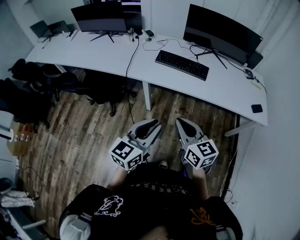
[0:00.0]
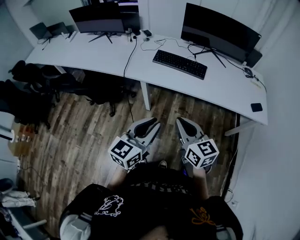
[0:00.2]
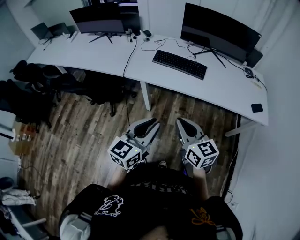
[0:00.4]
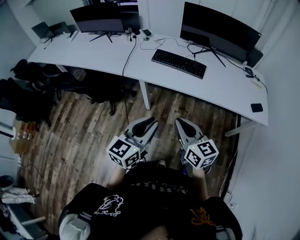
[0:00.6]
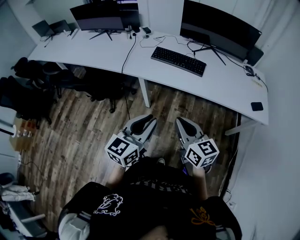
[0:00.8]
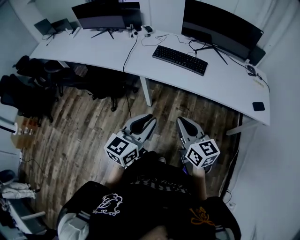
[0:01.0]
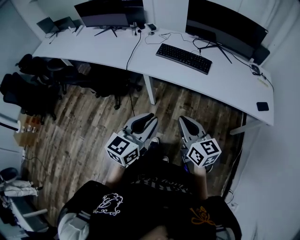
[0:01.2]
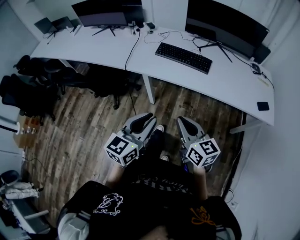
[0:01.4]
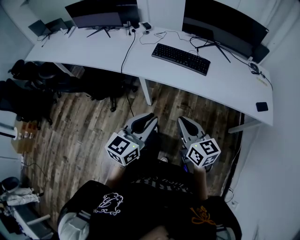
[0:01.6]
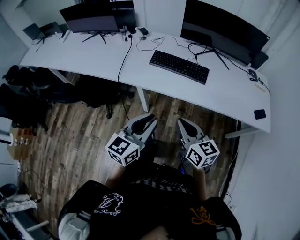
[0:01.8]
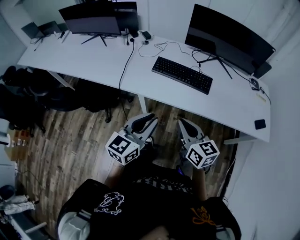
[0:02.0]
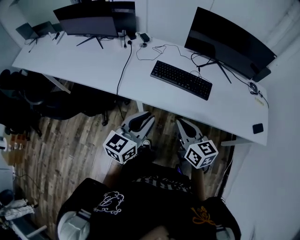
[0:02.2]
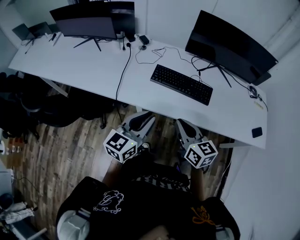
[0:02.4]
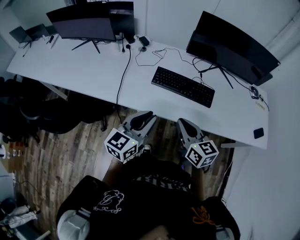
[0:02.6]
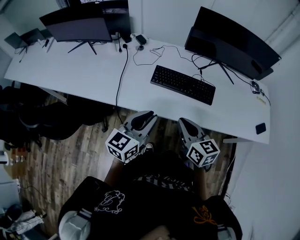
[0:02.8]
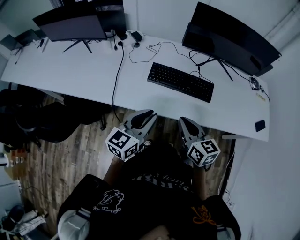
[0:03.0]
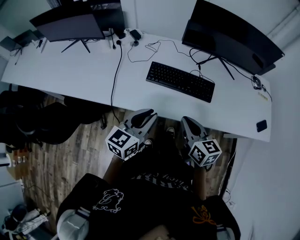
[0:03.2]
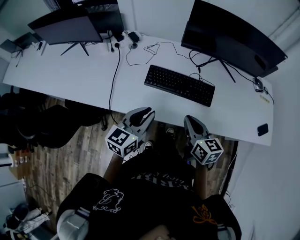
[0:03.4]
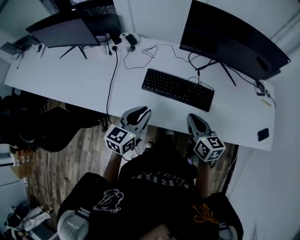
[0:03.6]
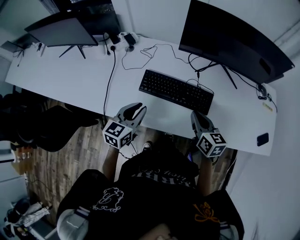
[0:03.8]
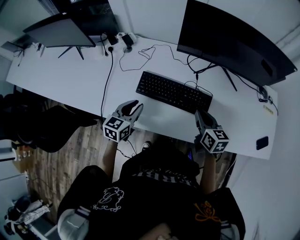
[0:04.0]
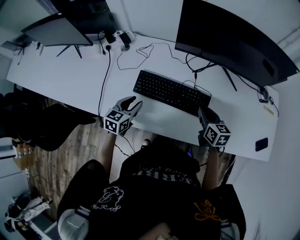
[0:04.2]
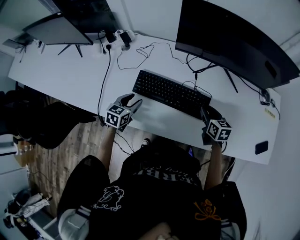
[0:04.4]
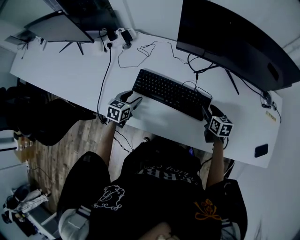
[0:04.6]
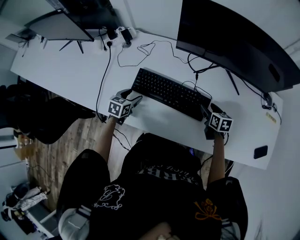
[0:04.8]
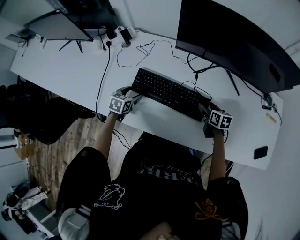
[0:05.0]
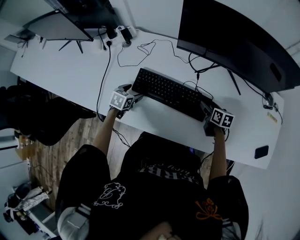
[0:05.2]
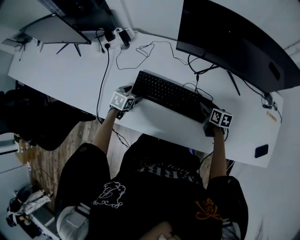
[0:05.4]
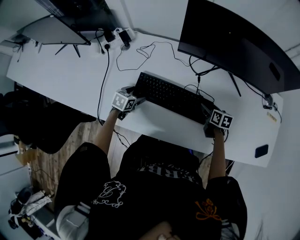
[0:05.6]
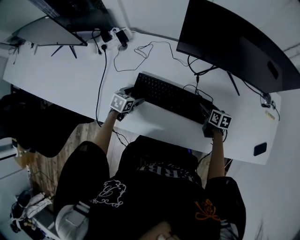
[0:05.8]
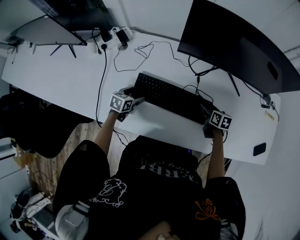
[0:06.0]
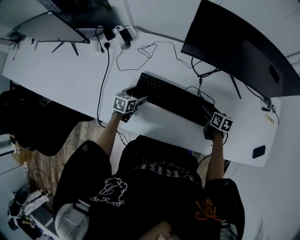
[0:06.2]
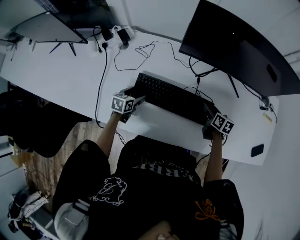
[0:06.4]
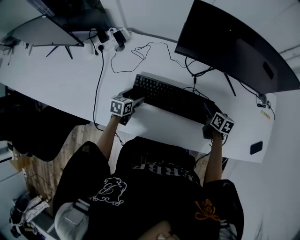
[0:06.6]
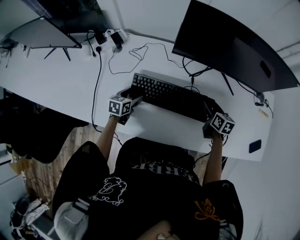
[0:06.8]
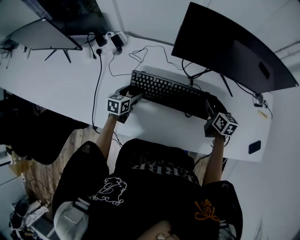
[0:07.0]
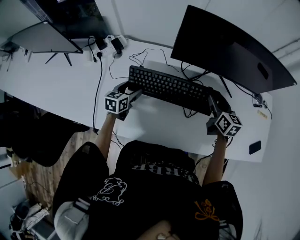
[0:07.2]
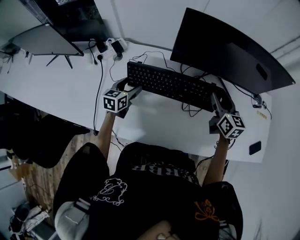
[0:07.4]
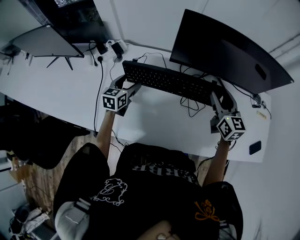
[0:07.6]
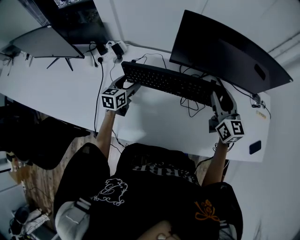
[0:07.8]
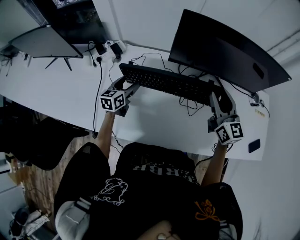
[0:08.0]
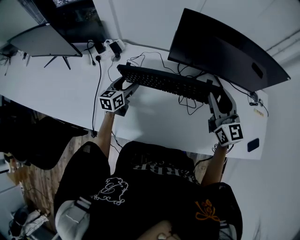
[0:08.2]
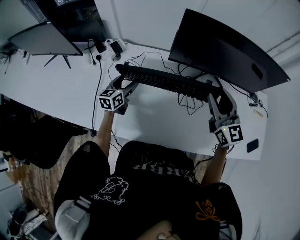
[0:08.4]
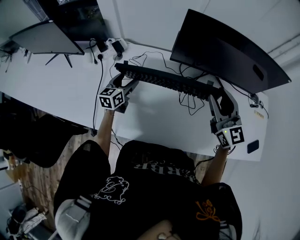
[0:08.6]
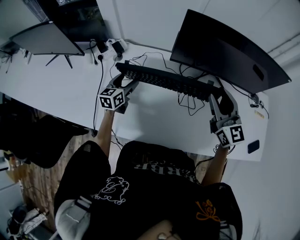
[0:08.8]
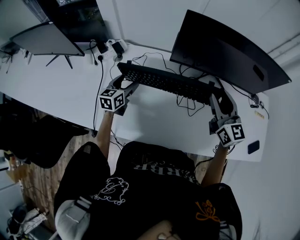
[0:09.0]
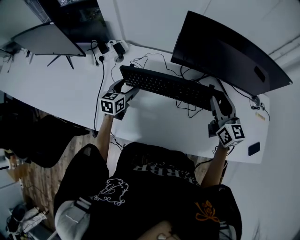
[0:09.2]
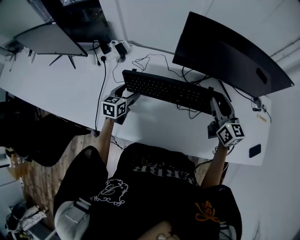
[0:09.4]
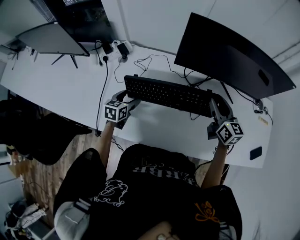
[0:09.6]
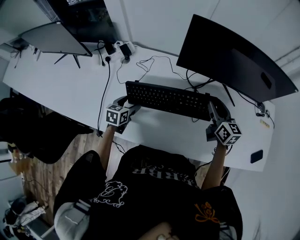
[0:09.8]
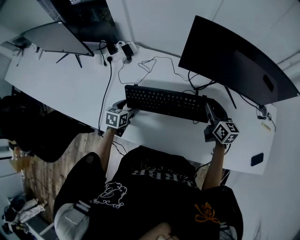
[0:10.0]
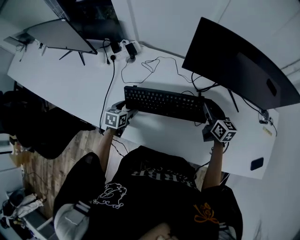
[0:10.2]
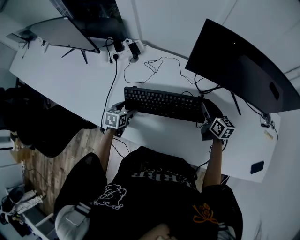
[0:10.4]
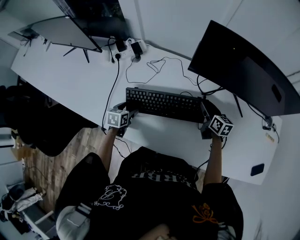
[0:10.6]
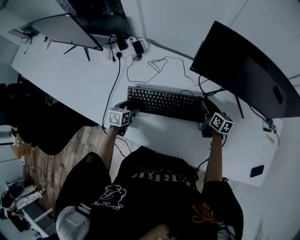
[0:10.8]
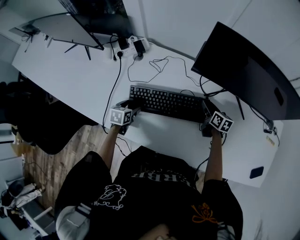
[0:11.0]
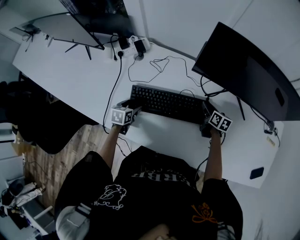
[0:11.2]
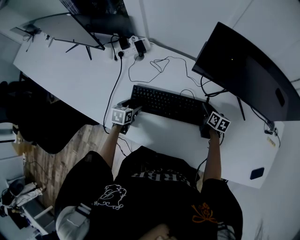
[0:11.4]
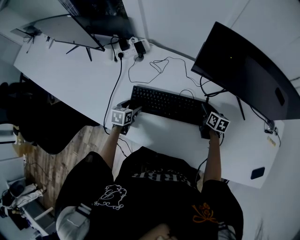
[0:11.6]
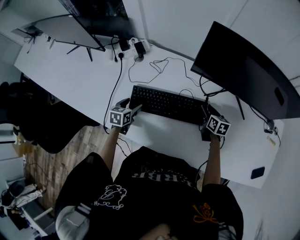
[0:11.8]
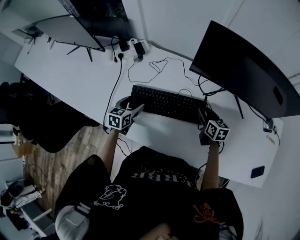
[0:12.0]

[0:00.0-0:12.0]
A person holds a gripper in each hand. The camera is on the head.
0.0 to 1.6 s: The left gripper travels forward by roughly 5 cm, while the right gripper moves to the right, roughly 5 cm.
1.6 to 3.0 s: The two grippers go some 30 cm forward.
3.0 to 4.4 s: The left gripper is displaced forward and downward by approximately 30 cm, and swivels some 30 degrees. Meanwhile the right gripper shifts about 35 cm forward, to the right and downward.
4.4 to 6.0 s: Both grippers travel together downward and forward, some 10 cm. The right gripper opens up; the left gripper opens up.
6.0 to 7.6 s: The right gripper shifts about 25 cm upward, and angles its fingers upward, by roughly 30 degrees. Meanwhile the left gripper shifts some 15 cm upward and forward, and rotates roughly 30 degrees.
9.0 to 10.4 s: The left gripper shifts approximately 15 cm downward and backward, and turns by about 30 degrees. Meanwhile the right gripper moves downward, approximately 20 cm, and swivels some 30 degrees.
10.4 to 12.0 s: The left gripper shifts by roughly 5 cm.

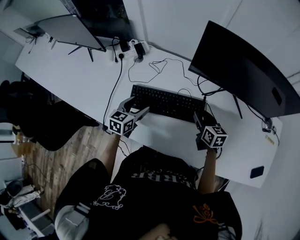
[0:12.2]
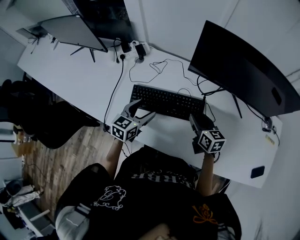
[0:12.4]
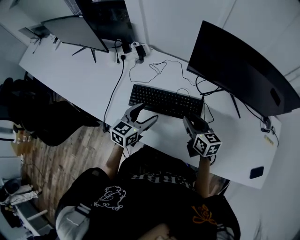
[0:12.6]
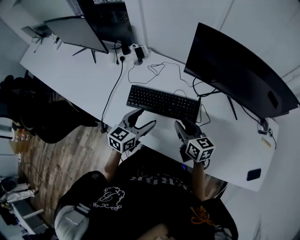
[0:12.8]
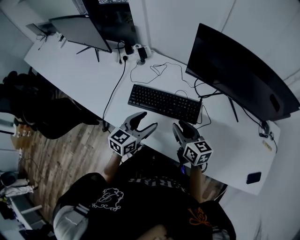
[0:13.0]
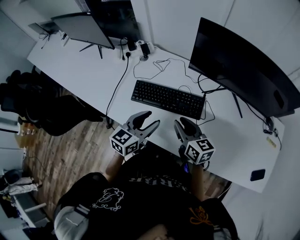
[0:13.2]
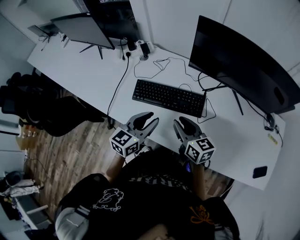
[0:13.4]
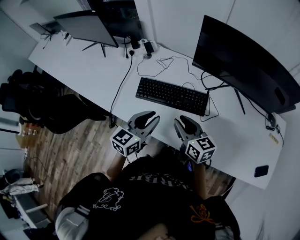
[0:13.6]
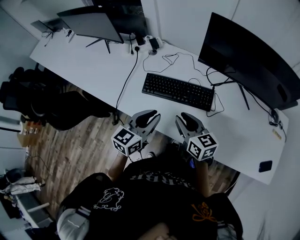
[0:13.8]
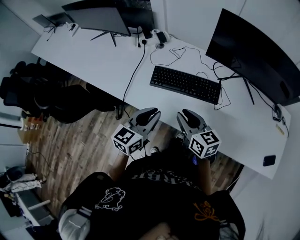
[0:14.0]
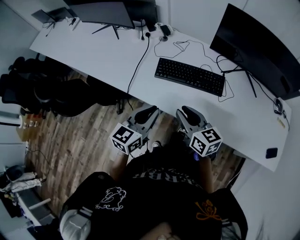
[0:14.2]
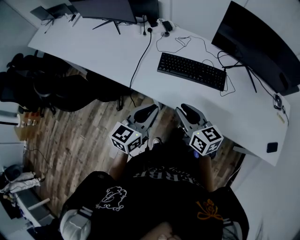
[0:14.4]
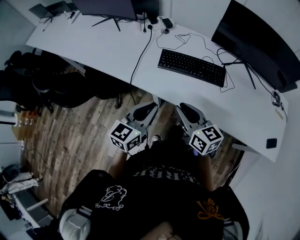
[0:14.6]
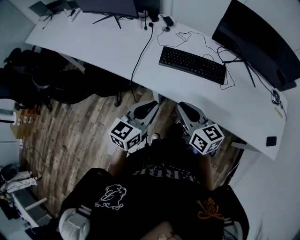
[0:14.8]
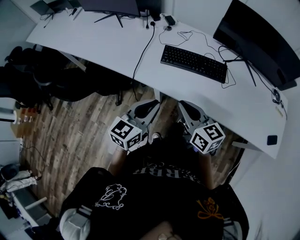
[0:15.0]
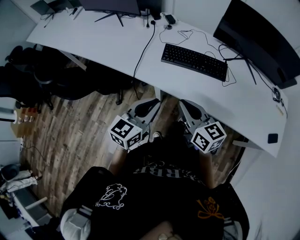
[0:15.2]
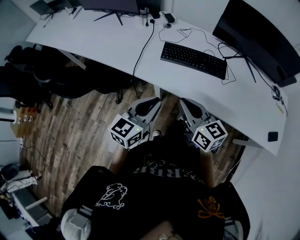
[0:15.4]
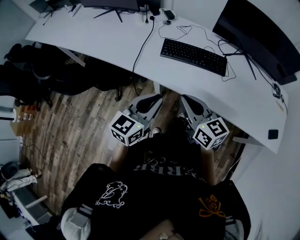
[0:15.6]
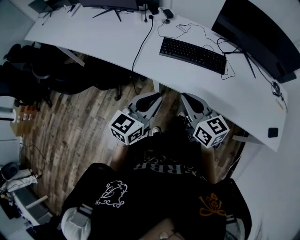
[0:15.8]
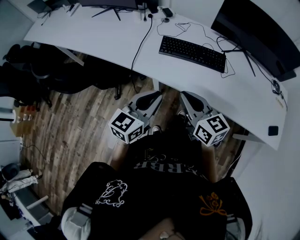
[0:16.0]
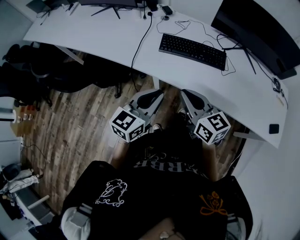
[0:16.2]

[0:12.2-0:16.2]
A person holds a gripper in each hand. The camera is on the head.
12.2 to 13.6 s: The left gripper heads backward, upward and to the right, covering about 20 cm, and closes; the right gripper heads backward, to the left and upward, covering approximately 20 cm.
13.6 to 14.8 s: Both grippers move to the left and backward, about 20 cm.
14.8 to 16.2 s: There are only small adjustments of the grippers.

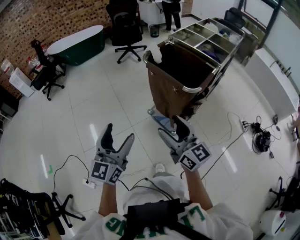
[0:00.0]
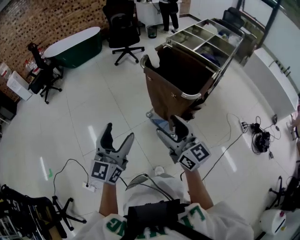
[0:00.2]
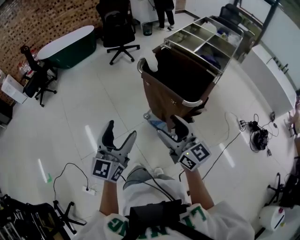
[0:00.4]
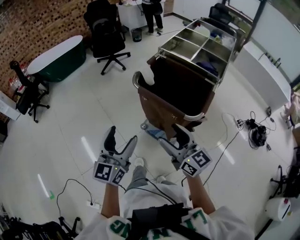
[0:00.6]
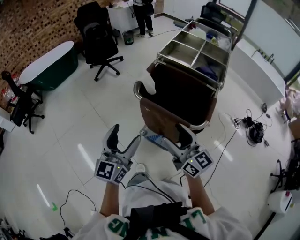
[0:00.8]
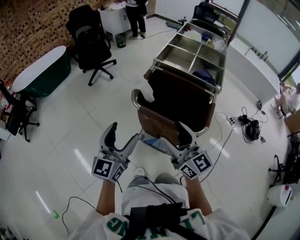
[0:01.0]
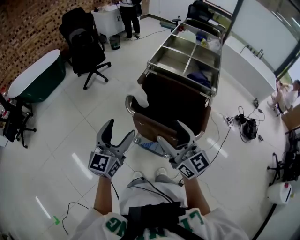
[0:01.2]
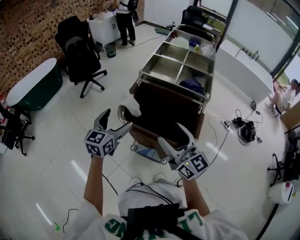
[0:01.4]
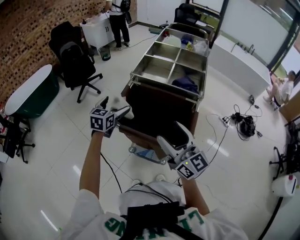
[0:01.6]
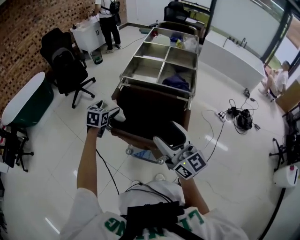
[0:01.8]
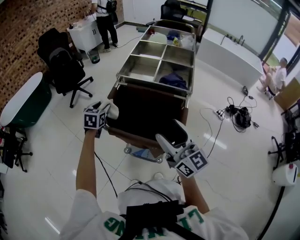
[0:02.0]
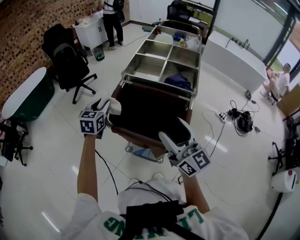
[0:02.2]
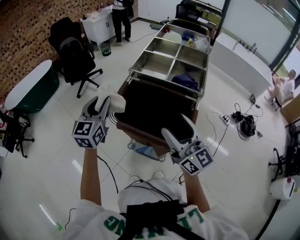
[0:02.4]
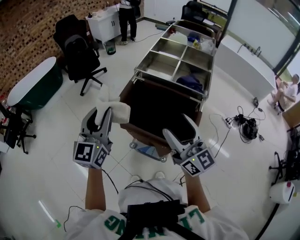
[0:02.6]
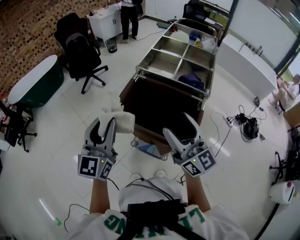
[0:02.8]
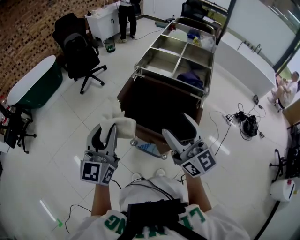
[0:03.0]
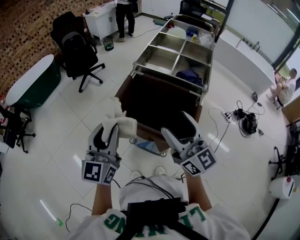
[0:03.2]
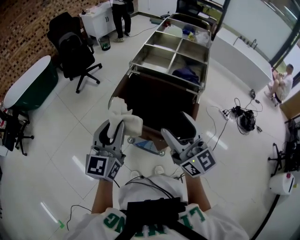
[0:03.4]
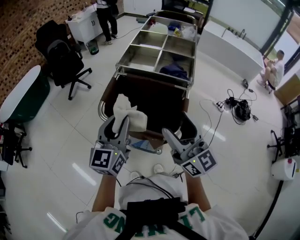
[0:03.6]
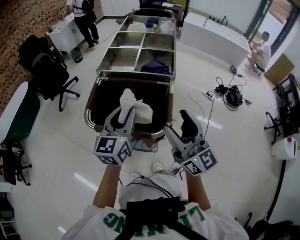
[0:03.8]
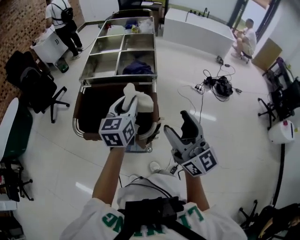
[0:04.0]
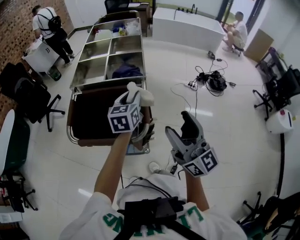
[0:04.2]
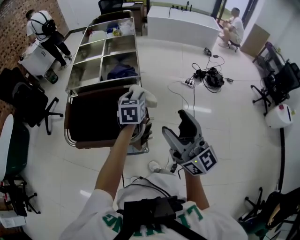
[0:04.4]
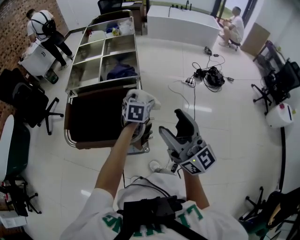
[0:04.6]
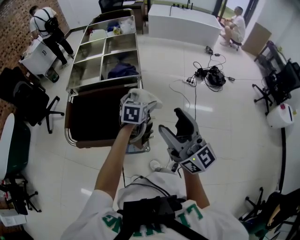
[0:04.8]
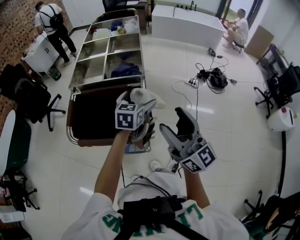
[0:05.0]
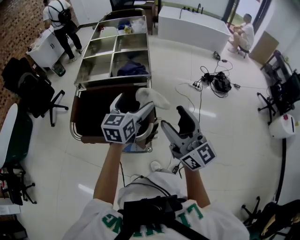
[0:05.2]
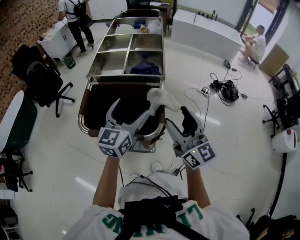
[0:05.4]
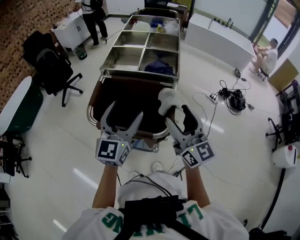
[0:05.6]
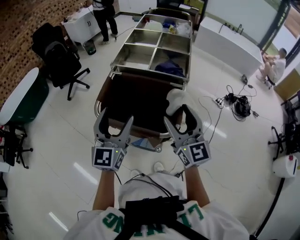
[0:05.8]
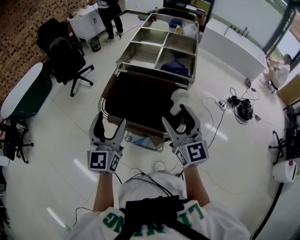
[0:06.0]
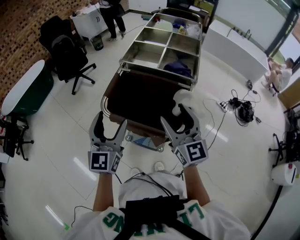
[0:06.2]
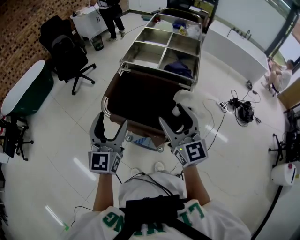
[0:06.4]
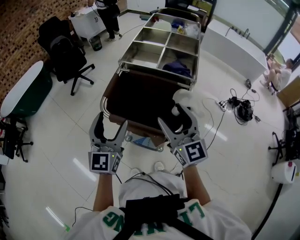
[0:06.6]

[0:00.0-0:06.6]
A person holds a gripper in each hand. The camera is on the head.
0.0 to 1.6 s: The left gripper changes place by roughly 60 cm, and turns by approximately 40 degrees; the right gripper moves about 30 cm, and turns by some 30 degrees.
1.6 to 3.2 s: The left gripper goes about 25 cm backward and upward, rotates roughly 30 degrees, and closes.
3.2 to 5.0 s: The right gripper shifts by some 20 cm, and rotates approximately 30 degrees; the left gripper moves about 40 cm, tips its fingers downward by roughly 30 degrees, and opens.
5.0 to 6.6 s: The right gripper shifts by approximately 20 cm, and changes its angle by some 20 degrees; the left gripper moves some 35 cm, angles its fingers upward, by approximately 30 degrees, and closes up.

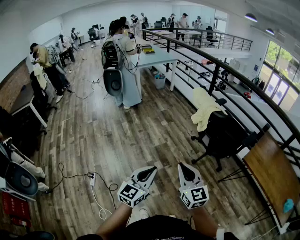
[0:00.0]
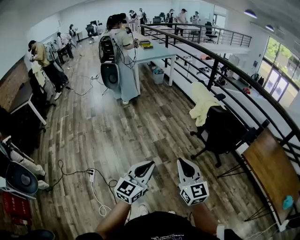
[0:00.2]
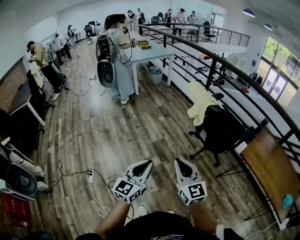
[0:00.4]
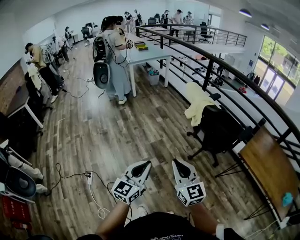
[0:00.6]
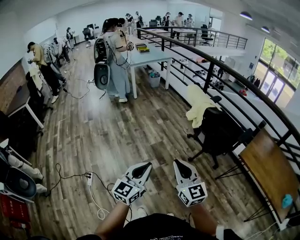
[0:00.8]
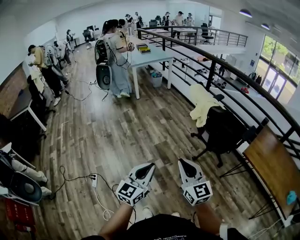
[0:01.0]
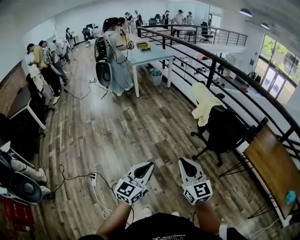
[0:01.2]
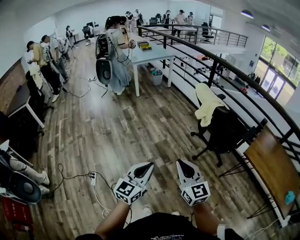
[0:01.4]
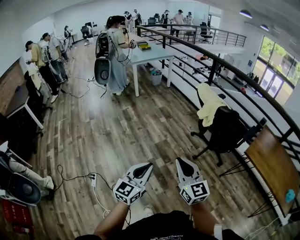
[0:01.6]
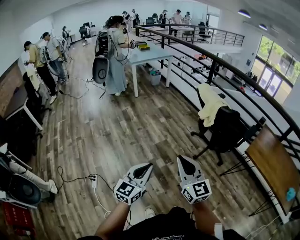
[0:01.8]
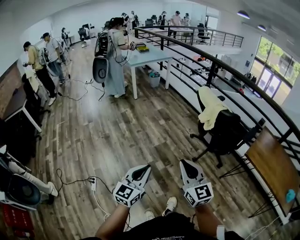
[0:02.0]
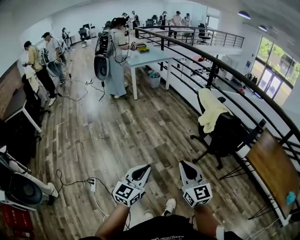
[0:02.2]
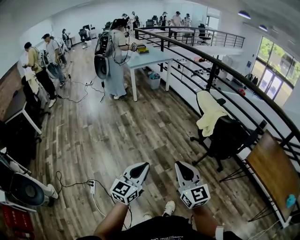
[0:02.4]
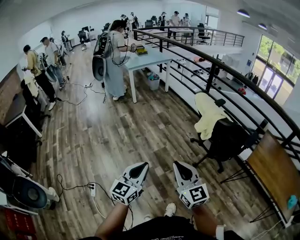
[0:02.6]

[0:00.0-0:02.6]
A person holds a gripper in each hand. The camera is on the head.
0.0 to 1.2 s: The grippers stay close to where they were, moving slightly.
1.2 to 2.6 s: The two grippers go roughly 10 cm forward.
